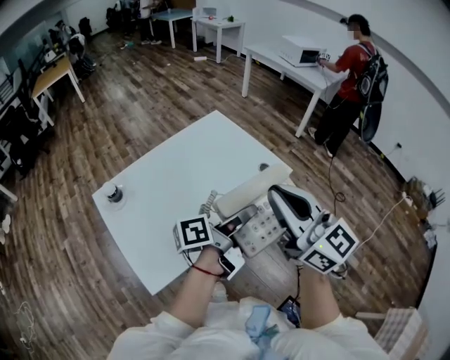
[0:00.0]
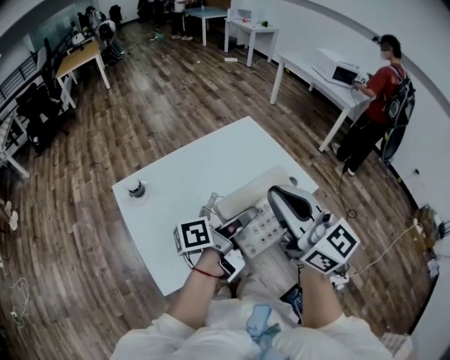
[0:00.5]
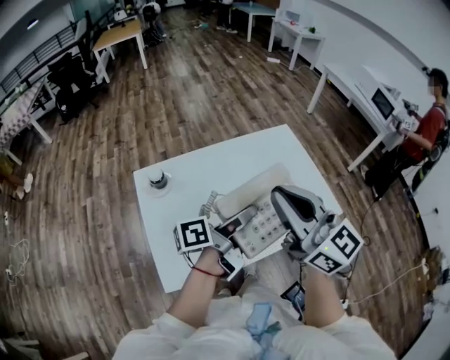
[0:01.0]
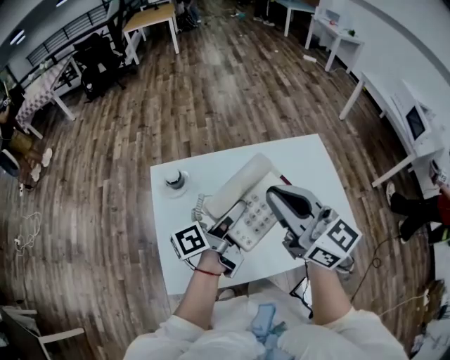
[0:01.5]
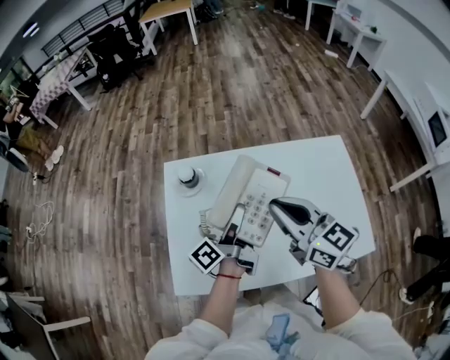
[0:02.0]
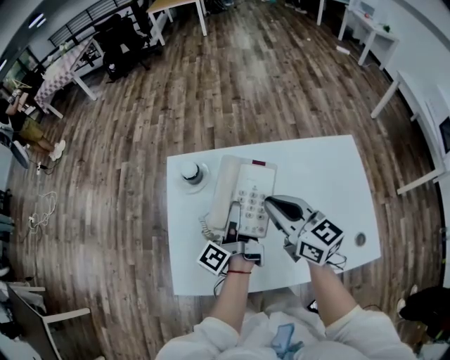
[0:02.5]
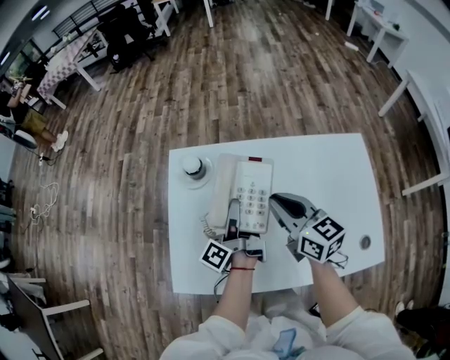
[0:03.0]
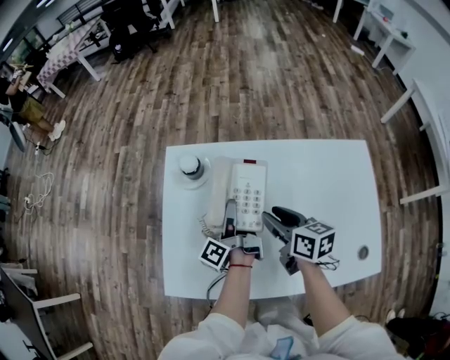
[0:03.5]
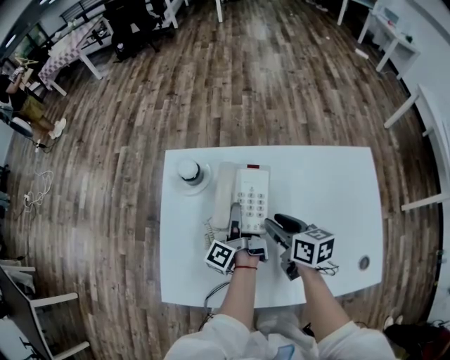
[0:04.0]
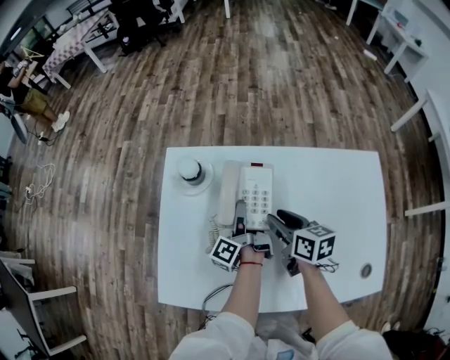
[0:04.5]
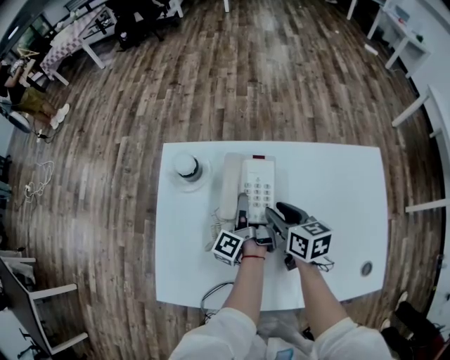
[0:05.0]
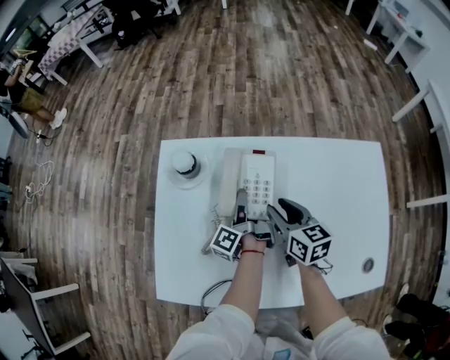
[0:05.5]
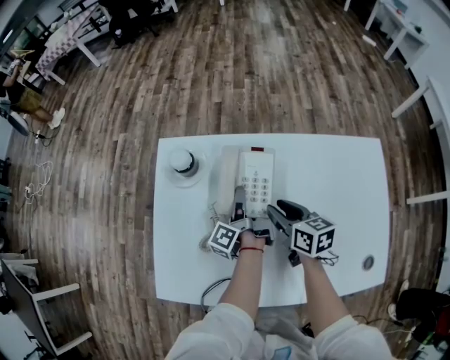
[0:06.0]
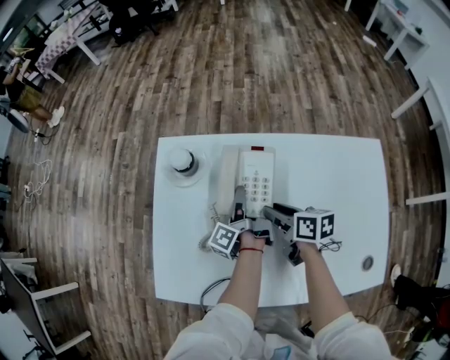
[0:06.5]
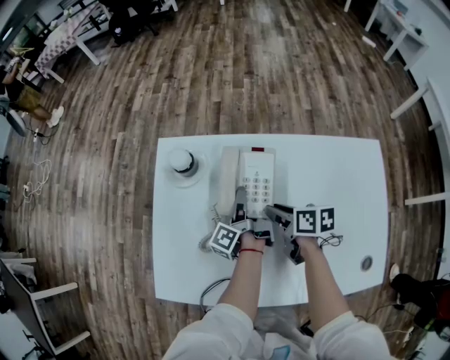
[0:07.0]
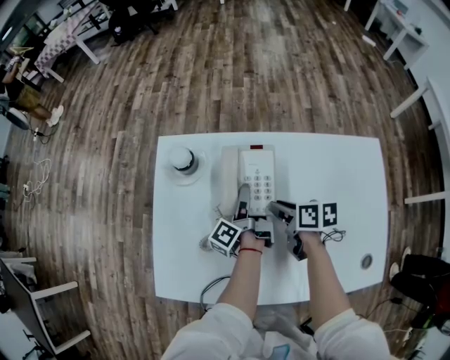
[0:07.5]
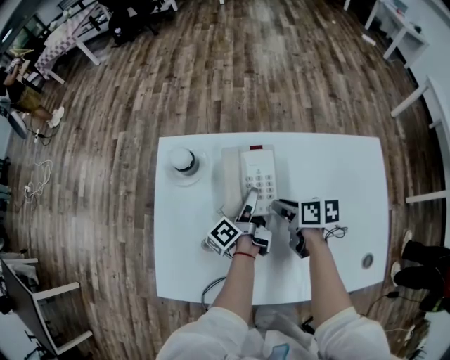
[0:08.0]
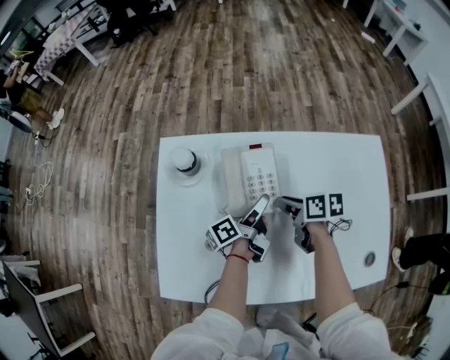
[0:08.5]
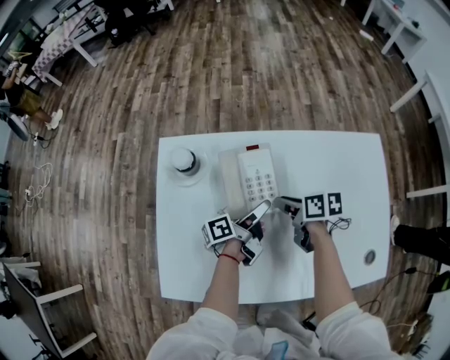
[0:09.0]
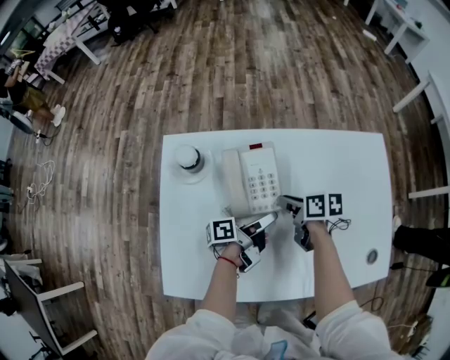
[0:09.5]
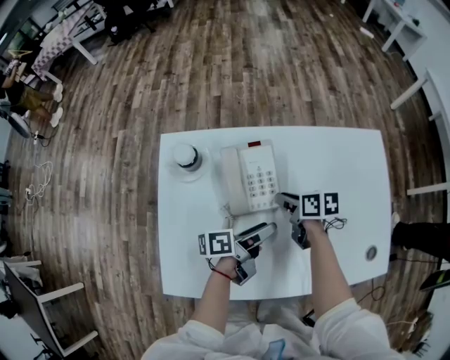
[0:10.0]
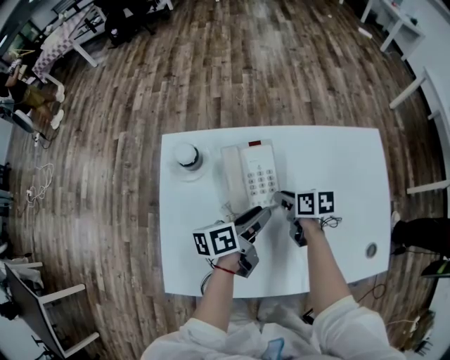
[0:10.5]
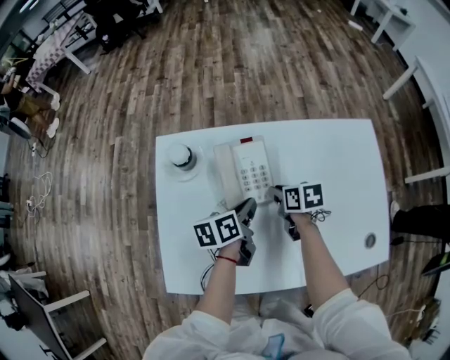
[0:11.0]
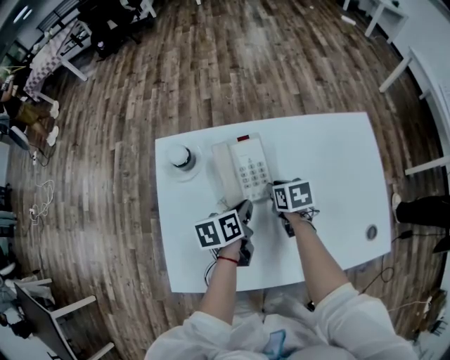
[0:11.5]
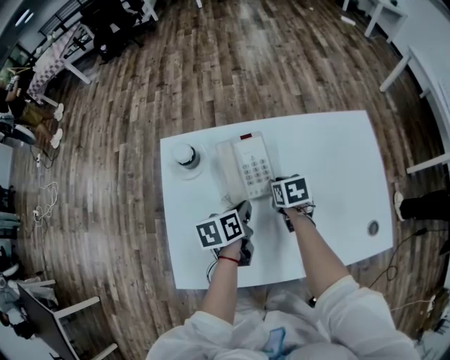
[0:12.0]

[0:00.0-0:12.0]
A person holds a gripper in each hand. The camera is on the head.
0:00.0 to 0:02.0: The right gripper changes place by about 35 cm, and changes its angle by some 40 degrees.
0:02.0 to 0:04.0: The right gripper shifts approximately 25 cm downward, swivels roughly 40 degrees, and opens up.
0:04.0 to 0:06.0: The right gripper changes place by about 5 cm.
0:06.0 to 0:08.0: The right gripper turns by some 20 degrees.
0:10.0 to 0:12.0: The right gripper changes its angle by some 30 degrees.

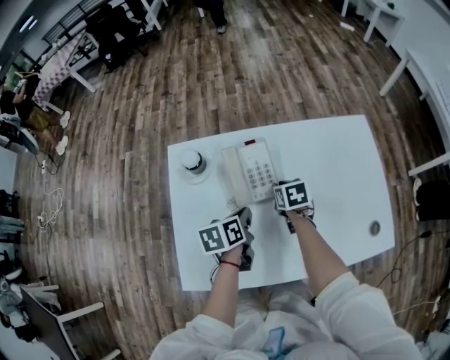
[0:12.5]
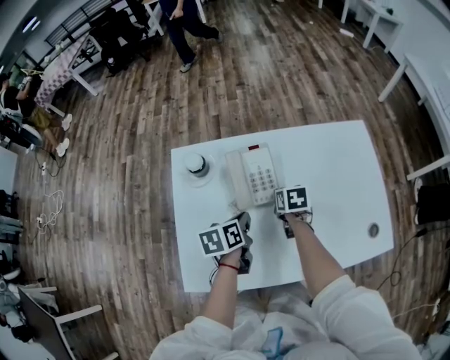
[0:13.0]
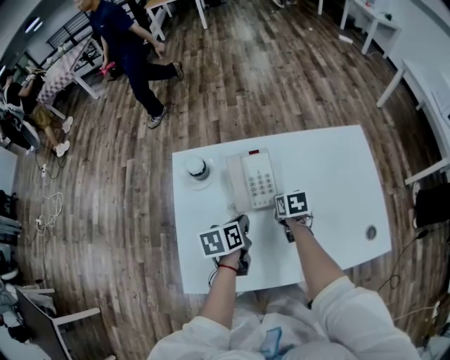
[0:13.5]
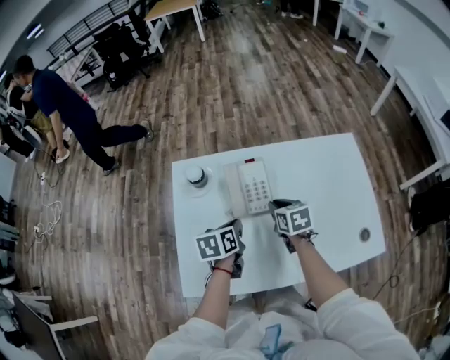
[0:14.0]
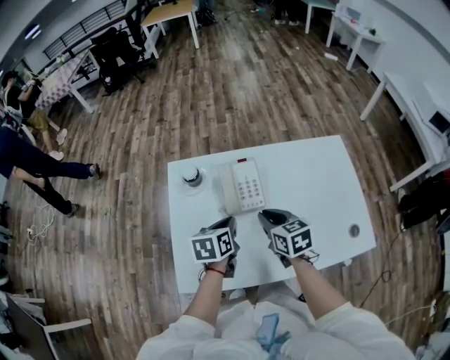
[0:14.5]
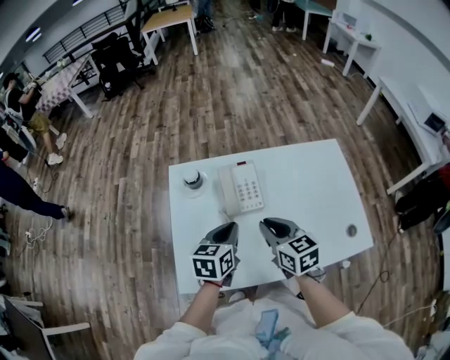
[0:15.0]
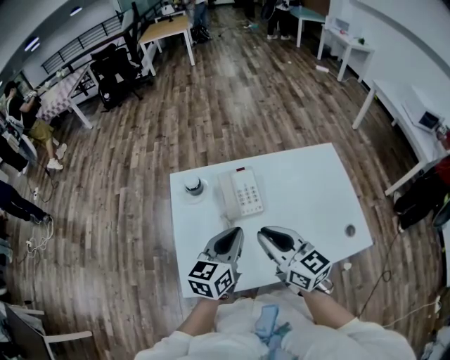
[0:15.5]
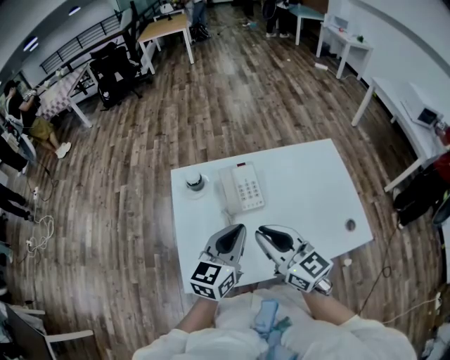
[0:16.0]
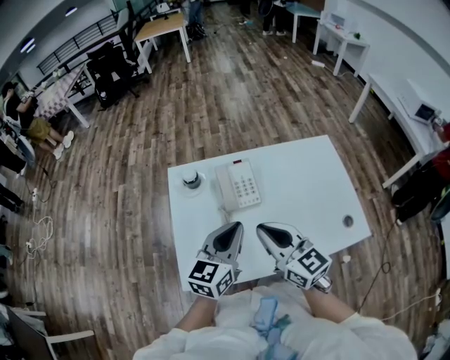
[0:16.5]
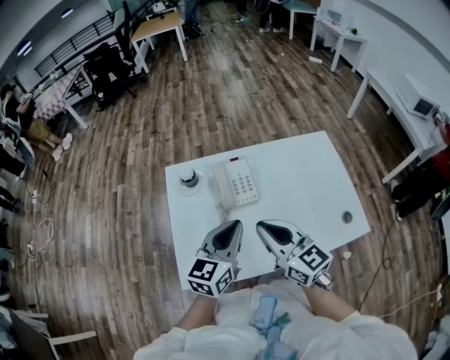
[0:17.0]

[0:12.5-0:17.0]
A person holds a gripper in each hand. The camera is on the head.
0:12.5 to 0:14.5: The right gripper moves upward, some 15 cm, and rotates some 20 degrees.
0:14.5 to 0:17.0: The right gripper travels upward by roughly 15 cm, and angles its fingers upward, by some 30 degrees.

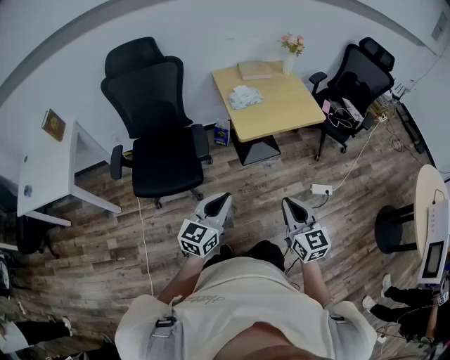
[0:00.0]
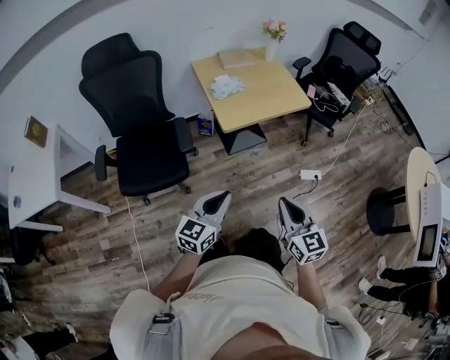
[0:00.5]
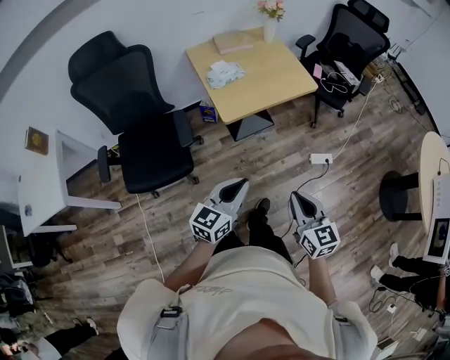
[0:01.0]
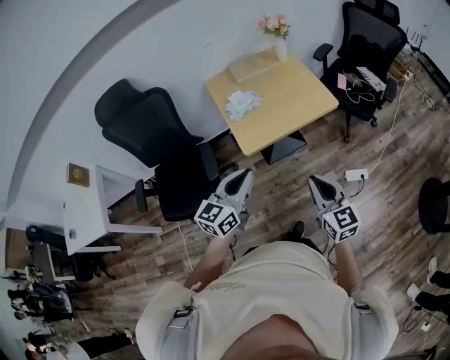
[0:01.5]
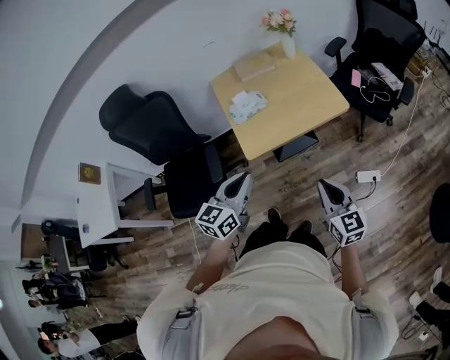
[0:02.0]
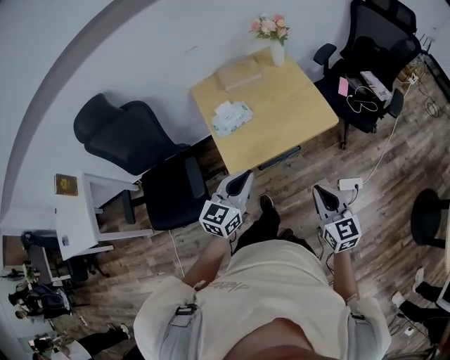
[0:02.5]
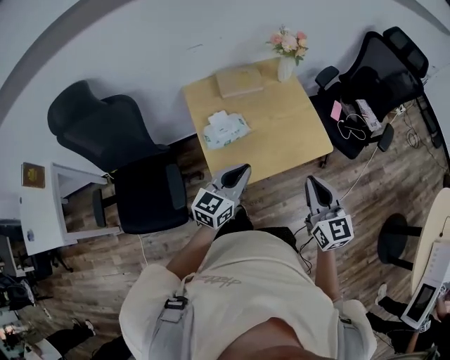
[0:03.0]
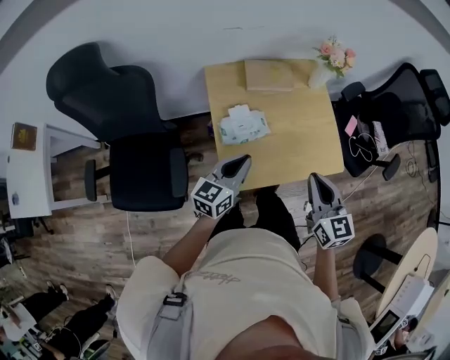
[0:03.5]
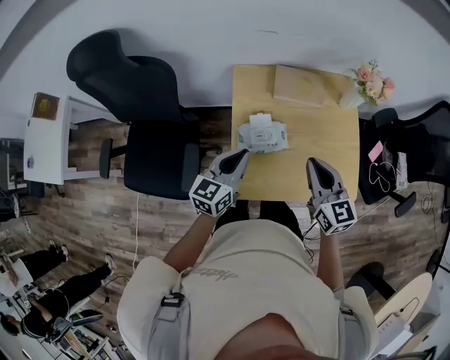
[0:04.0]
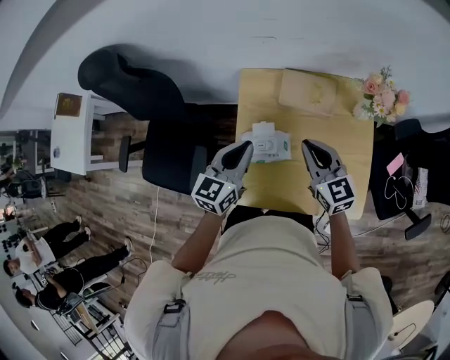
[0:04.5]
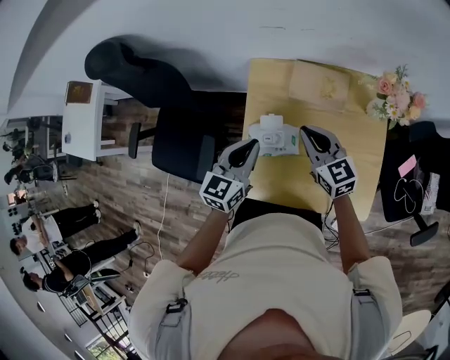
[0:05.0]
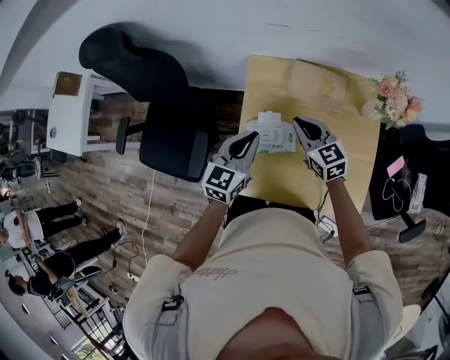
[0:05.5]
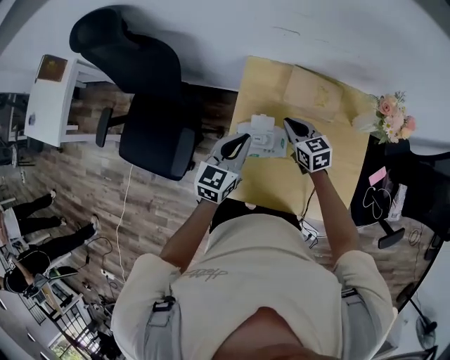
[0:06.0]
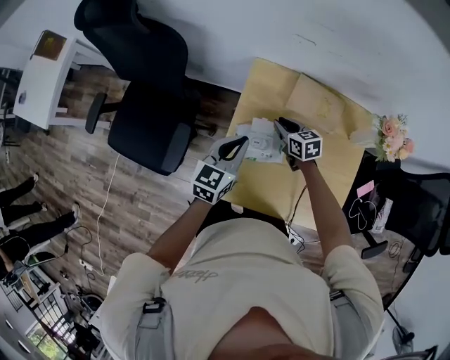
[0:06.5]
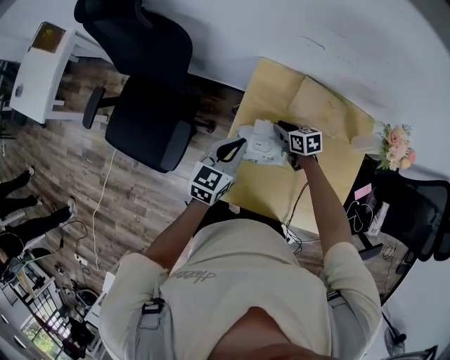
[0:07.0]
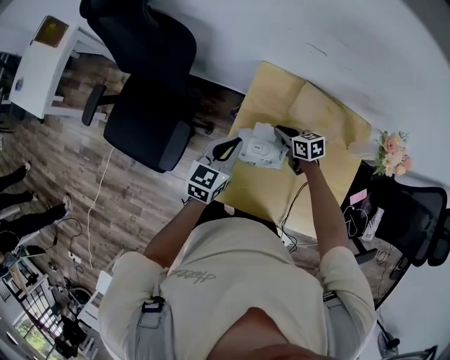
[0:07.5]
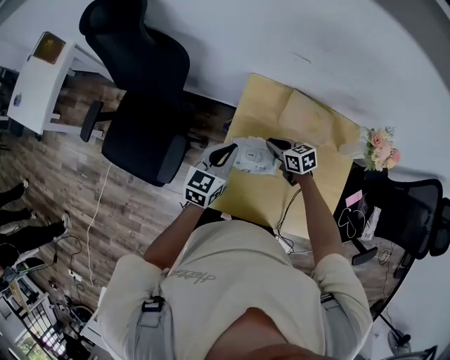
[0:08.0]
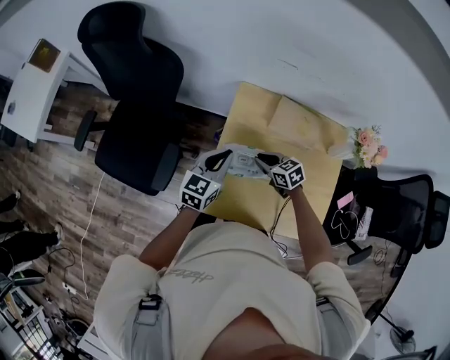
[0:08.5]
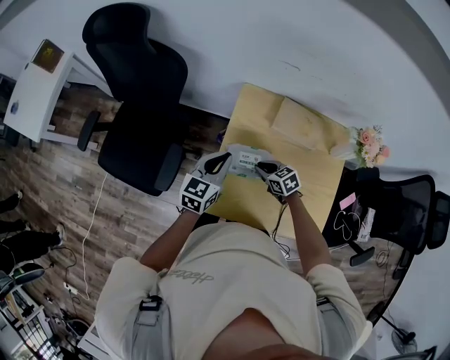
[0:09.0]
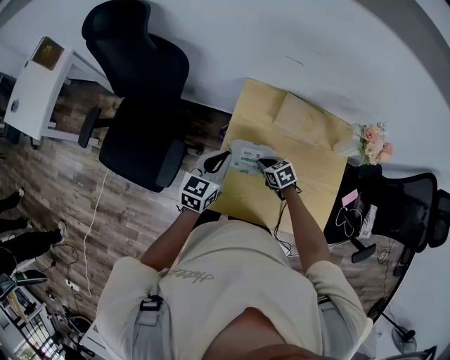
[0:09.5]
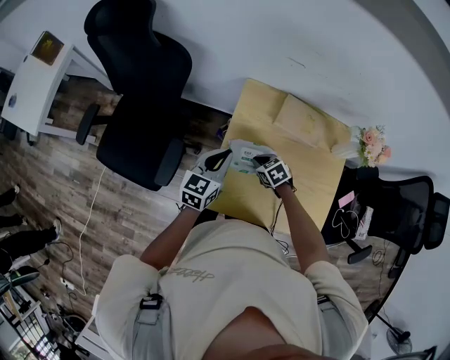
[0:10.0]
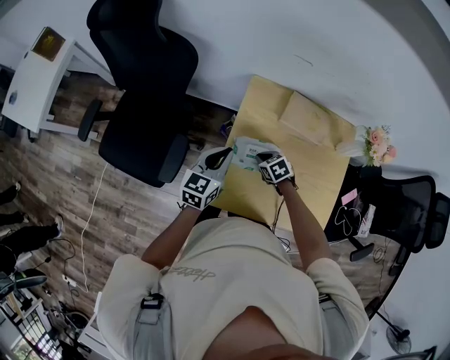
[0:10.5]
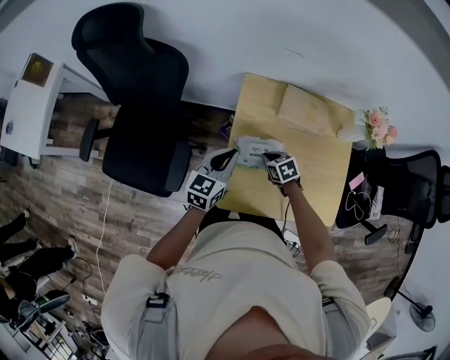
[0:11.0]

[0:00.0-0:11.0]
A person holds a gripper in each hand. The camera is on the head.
0:00.0 to 0:02.0: Both grippers travel together forward and to the right, about 30 cm.
0:02.0 to 0:03.5: Both grippers move forward, about 30 cm.
0:03.5 to 0:05.5: The left gripper changes place by some 15 cm, and swivels roughly 30 degrees. The right gripper shifts by roughly 30 cm, and changes its angle by roughly 40 degrees.
0:05.5 to 0:07.5: The right gripper heads downward, covering roughly 15 cm, and turns by approximately 30 degrees. The left gripper goes about 10 cm to the left and downward.
0:07.5 to 0:09.0: The right gripper shifts some 10 cm backward.
0:09.0 to 0:11.0: The grippers make only small movements.
